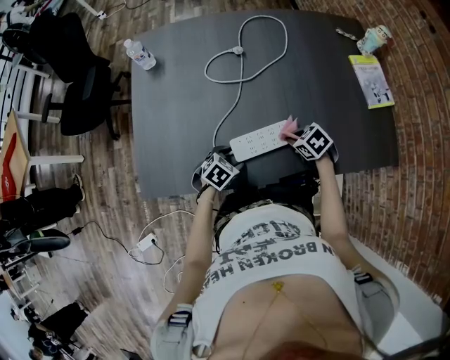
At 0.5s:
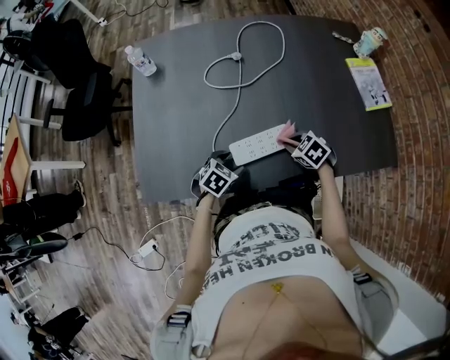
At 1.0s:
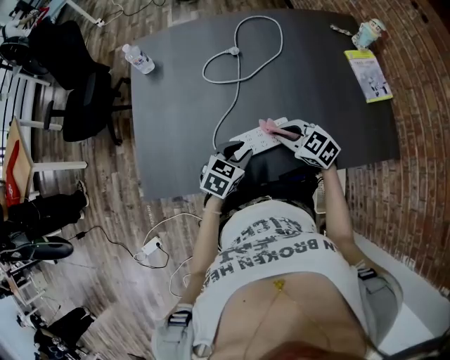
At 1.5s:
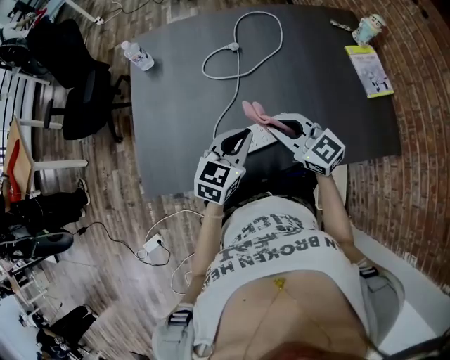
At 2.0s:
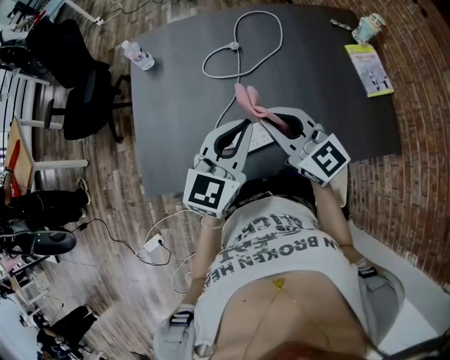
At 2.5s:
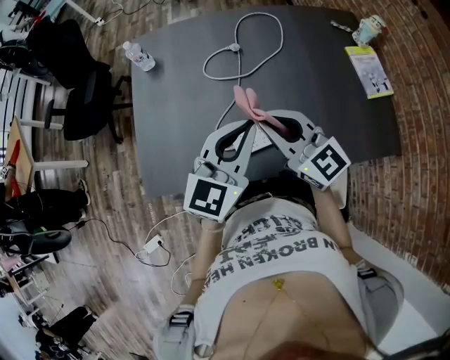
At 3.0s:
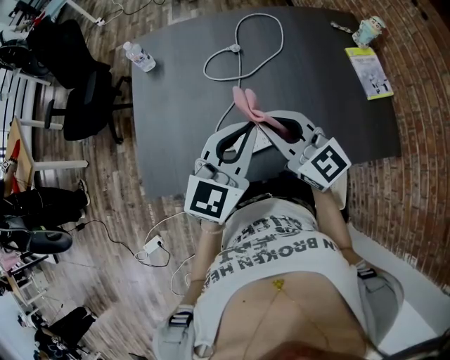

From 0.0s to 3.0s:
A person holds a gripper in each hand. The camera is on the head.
From 0.0s to 1.5s: The two grippers go about 20 cm upward. The right gripper tips its fingers upward by some 50 degrees. Meanwhile the left gripper angles its fingers upward, by approximately 40 degrees, and closes its fingers.
From 1.5s to 3.0s: Both grippers move upward, some 10 cm.

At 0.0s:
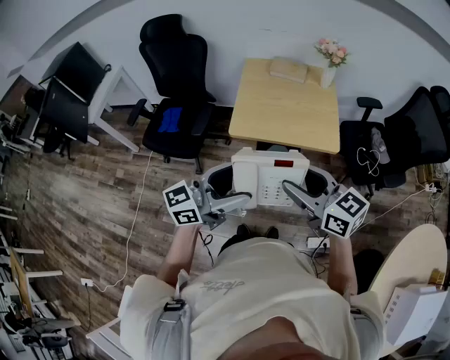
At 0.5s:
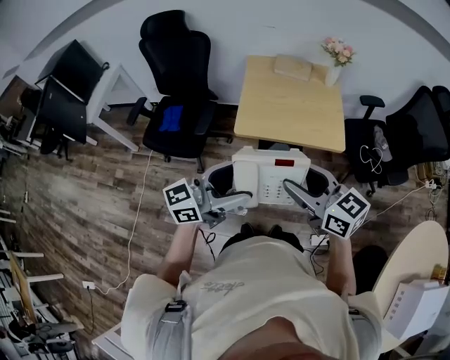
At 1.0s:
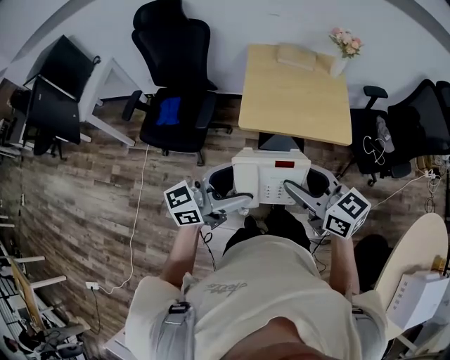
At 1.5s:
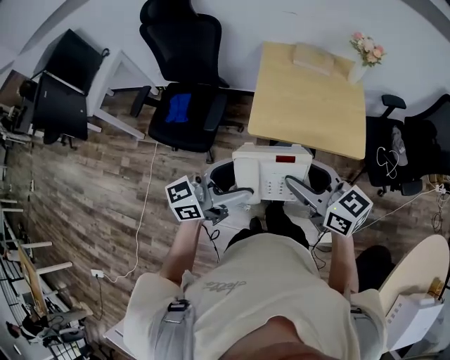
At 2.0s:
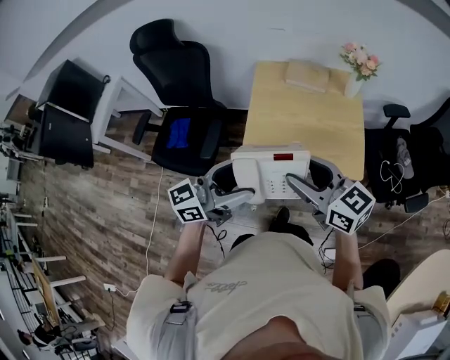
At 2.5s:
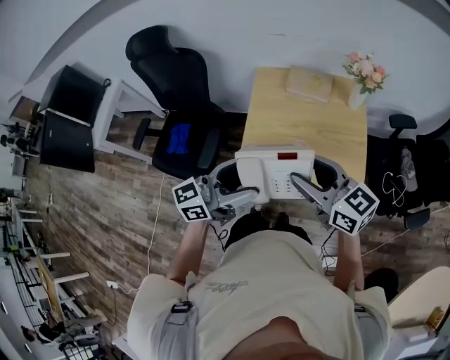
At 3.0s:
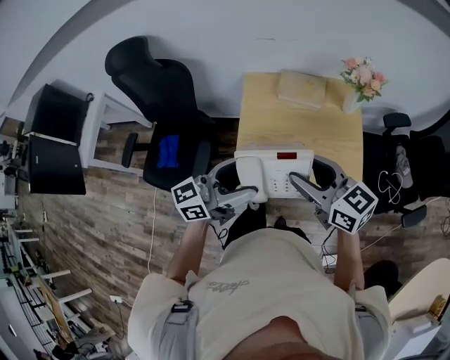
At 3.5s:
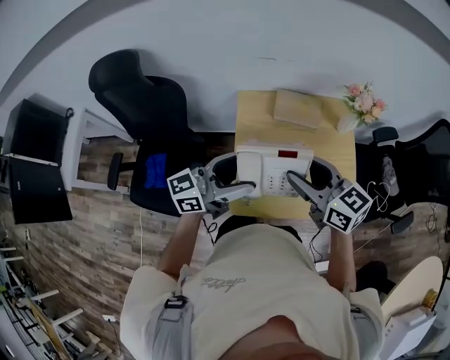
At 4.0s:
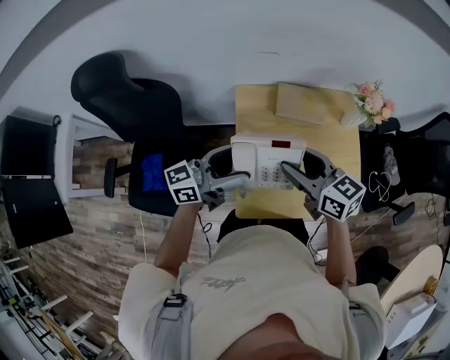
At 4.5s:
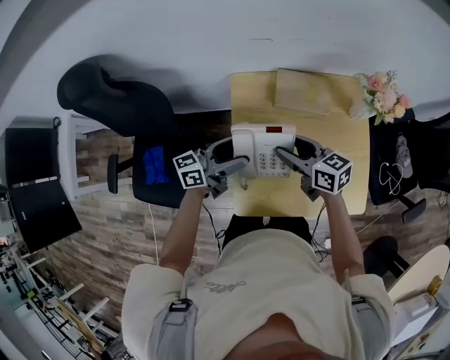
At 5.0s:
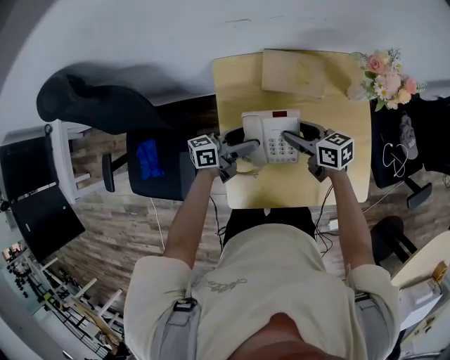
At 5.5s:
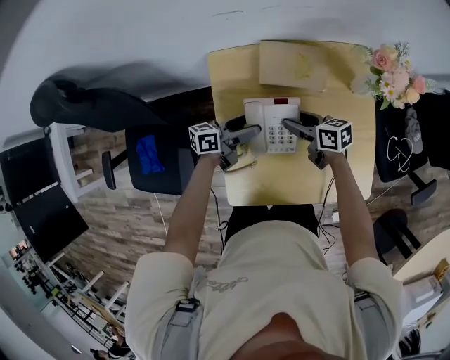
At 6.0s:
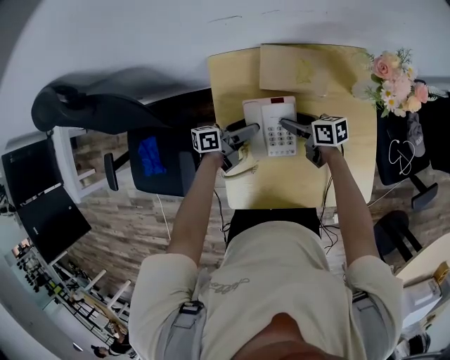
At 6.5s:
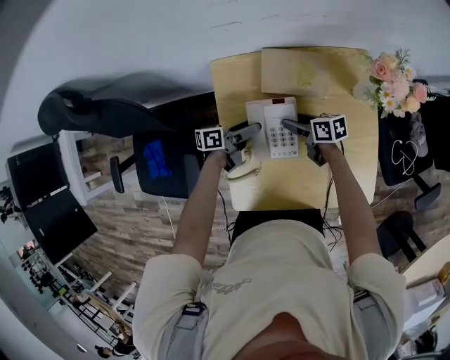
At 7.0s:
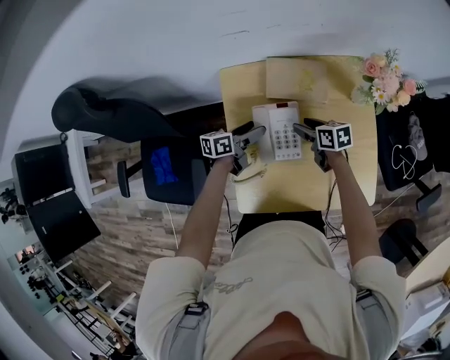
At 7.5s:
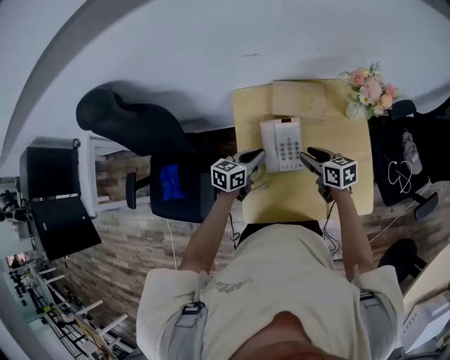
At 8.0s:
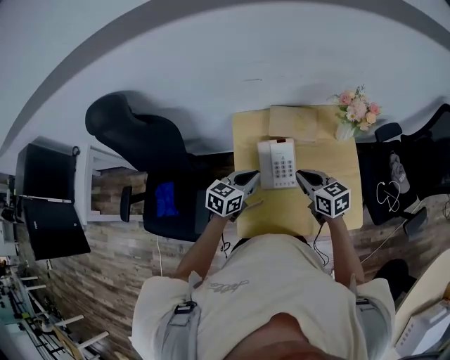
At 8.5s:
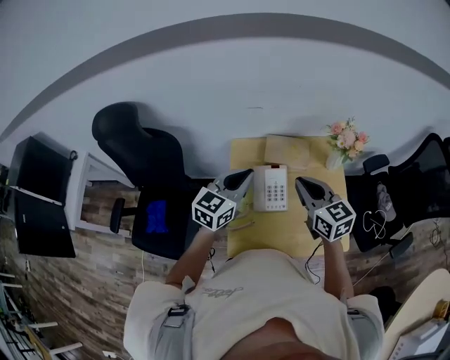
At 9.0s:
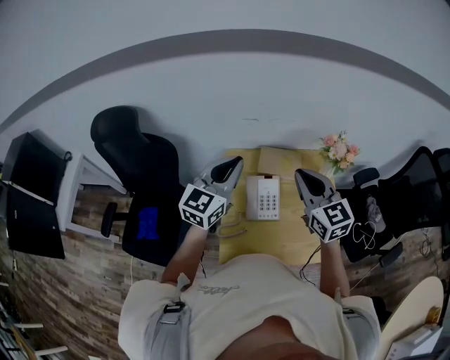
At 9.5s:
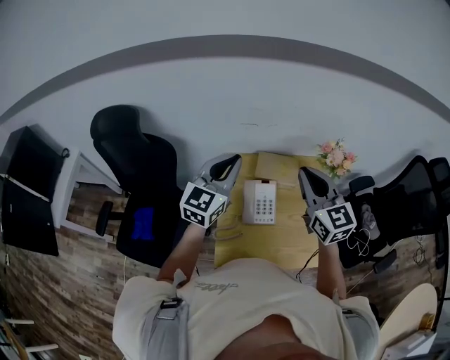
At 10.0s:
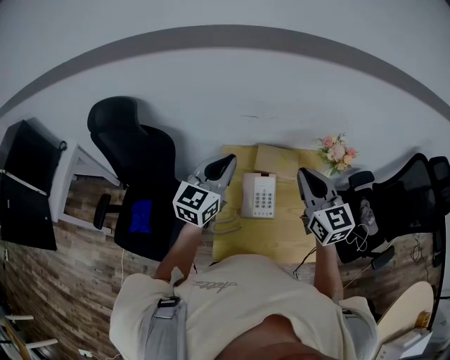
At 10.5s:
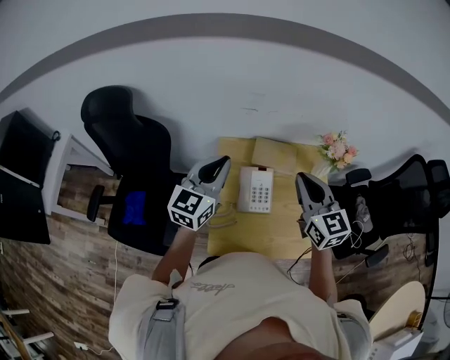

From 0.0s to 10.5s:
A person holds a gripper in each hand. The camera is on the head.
From 0.0s to 2.0s: The grippers both shift forward by roughly 20 cm.
From 2.0s to 4.0s: The two grippers go roughly 35 cm forward.
From 4.0s to 6.5s: The grippers both shift downward by some 35 cm. The left gripper changes its angle by roughly 50 degrees. The right gripper swivels some 40 degrees.
From 6.5s to 8.5s: Both grippers travel together upward, about 35 cm. The left gripper twists approximately 60 degrees clockwise, seen from behind, and closes up; the right gripper swivels approximately 50 degrees, and closes up.
From 8.5s to 10.5s: The right gripper is displaced upward by about 5 cm. The left gripper travels upward and to the left by some 10 cm.

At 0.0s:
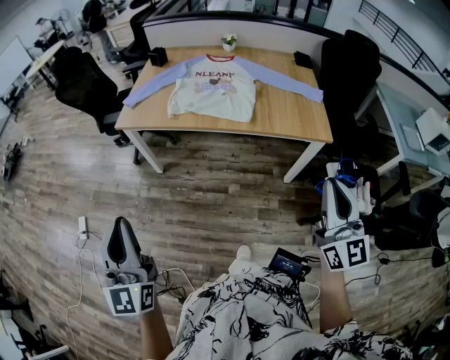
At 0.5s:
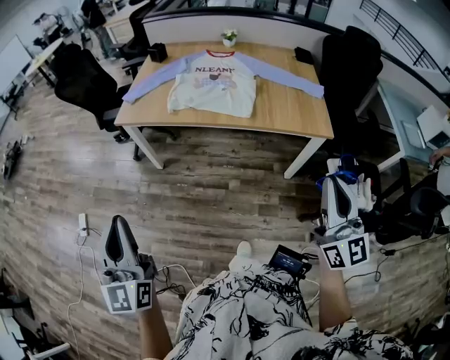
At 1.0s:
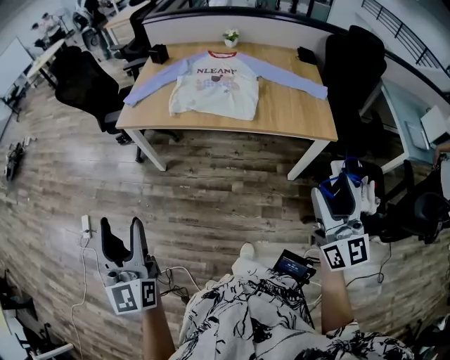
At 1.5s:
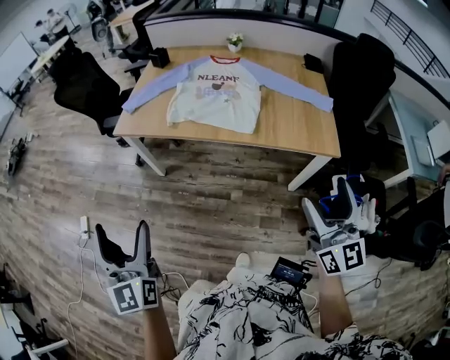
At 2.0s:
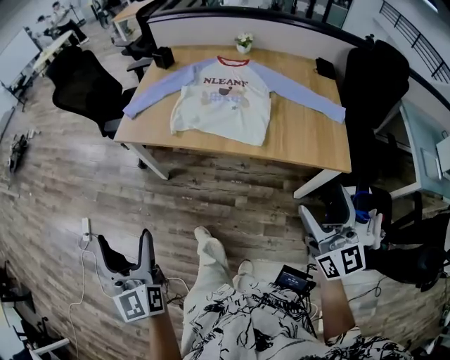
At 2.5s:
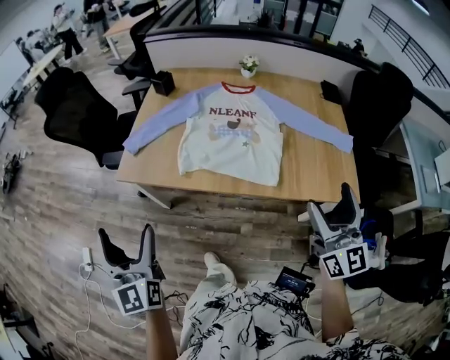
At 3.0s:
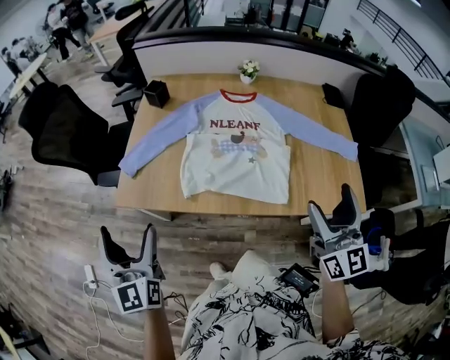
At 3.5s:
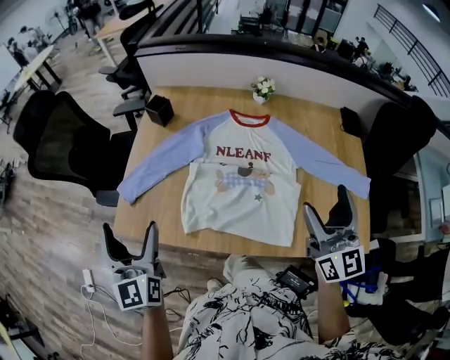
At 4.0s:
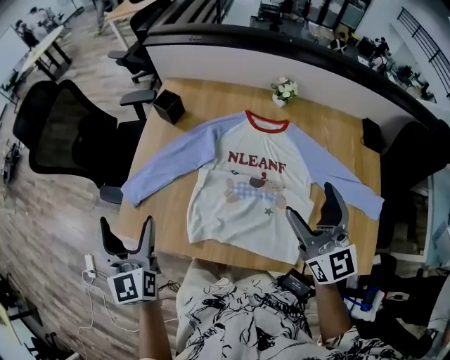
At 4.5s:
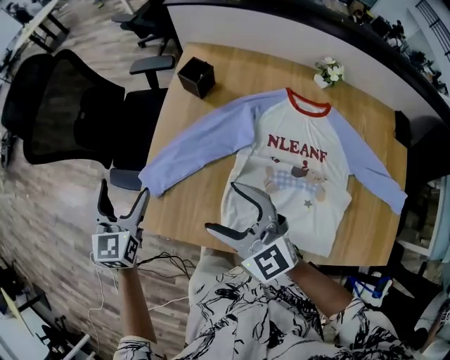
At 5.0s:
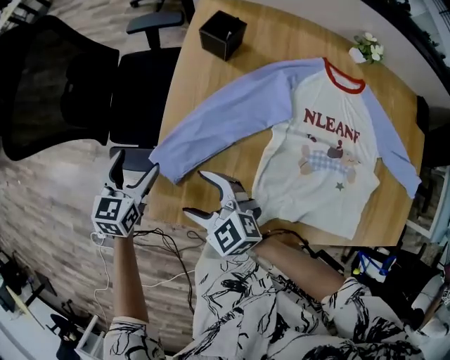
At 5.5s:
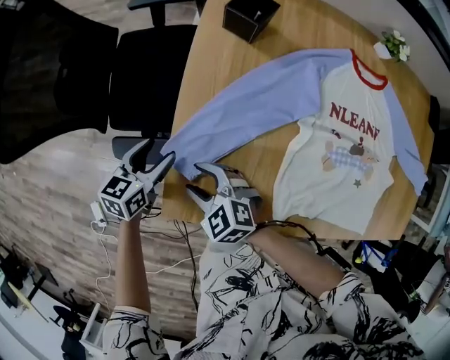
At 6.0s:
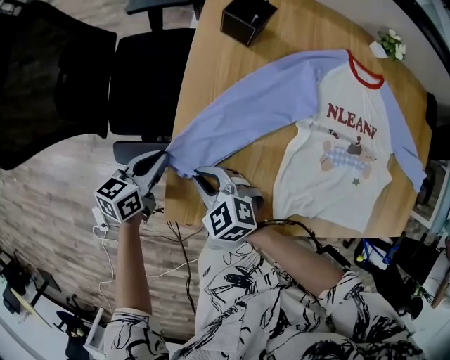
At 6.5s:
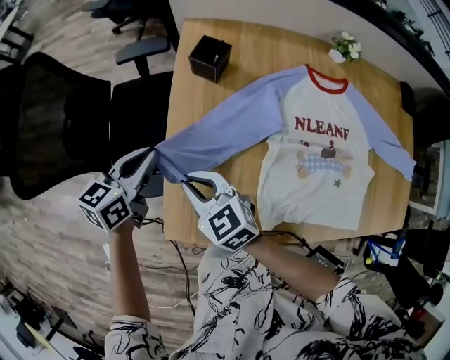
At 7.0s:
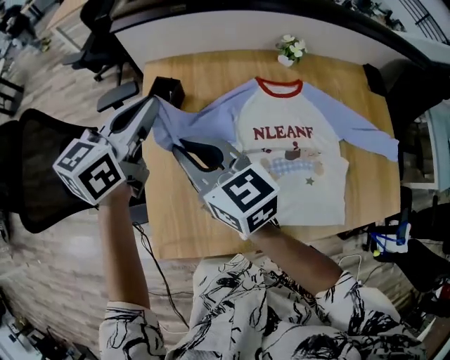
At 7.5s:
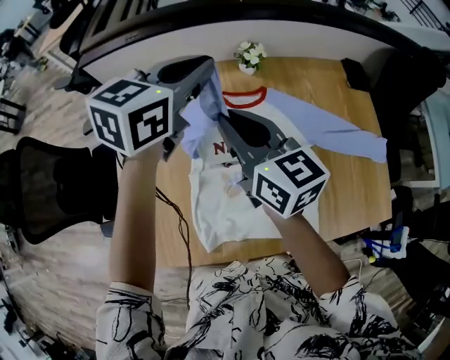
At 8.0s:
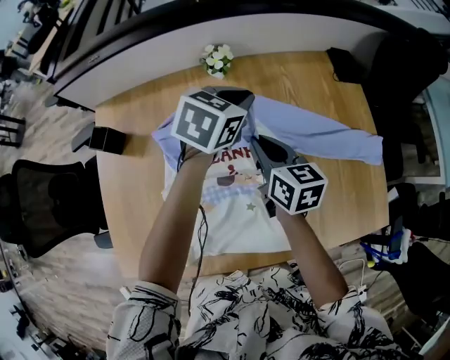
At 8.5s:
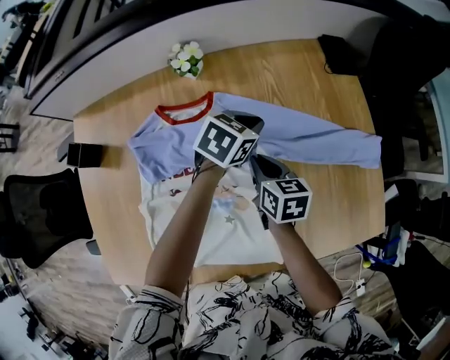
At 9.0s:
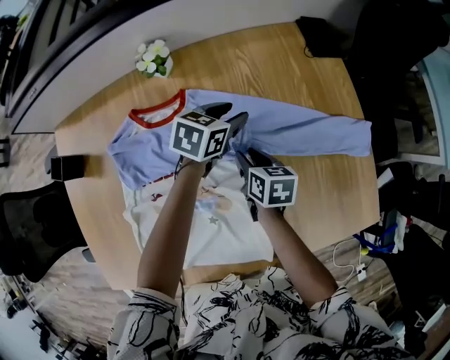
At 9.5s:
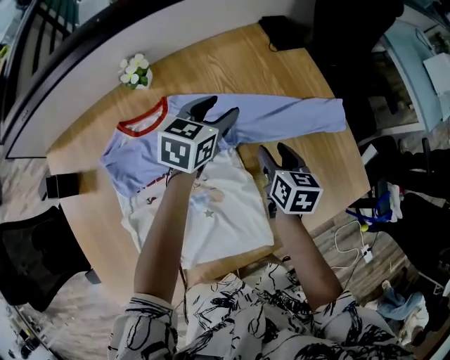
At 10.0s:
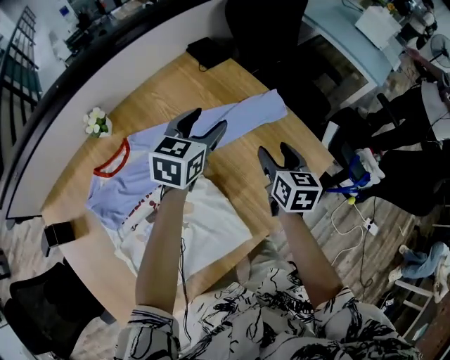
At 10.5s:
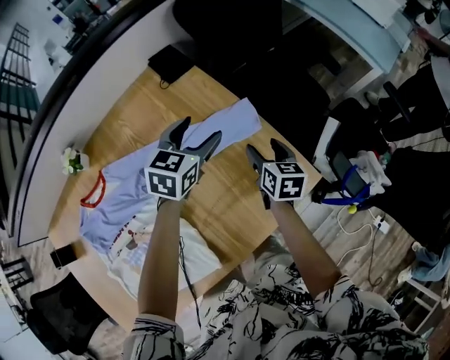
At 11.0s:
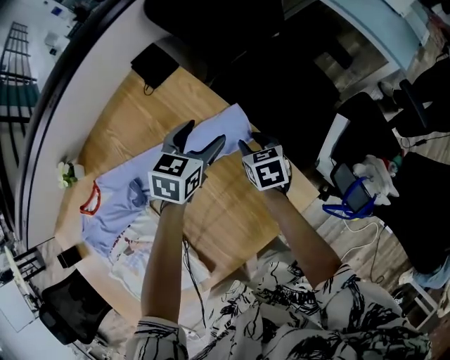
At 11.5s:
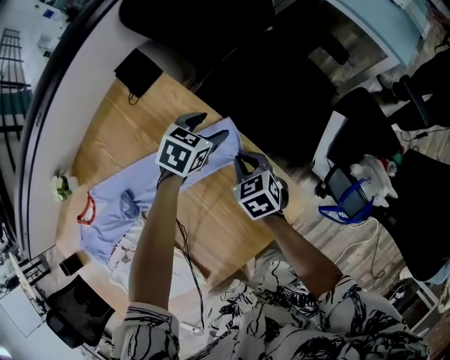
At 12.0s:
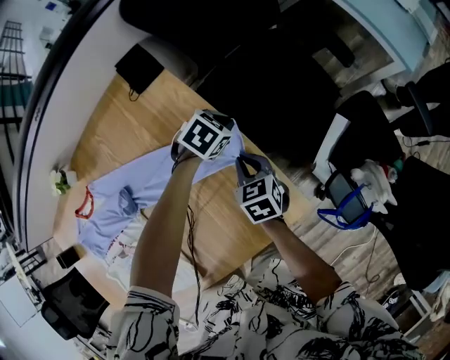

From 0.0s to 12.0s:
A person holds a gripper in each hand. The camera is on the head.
From 0.0s to 2.0s: Both grippers travel together forward, approximately 15 cm. The right gripper opens its fingers. Meanwhile the left gripper opens.
From 2.0s to 4.0s: Both grippers are carried forward, about 60 cm.
From 4.0s to 6.0s: The right gripper goes about 60 cm to the left and downward, angles its fingers downward, by some 40 degrees, and closes up. Meanwhile the left gripper heads downward, forward and to the left, covering approximately 40 cm, changes its angle by about 60 degrees, and closes up.
From 6.0s to 8.0s: The two grippers travel together, some 70 cm. The left gripper rotates around the line of its fingers by about 40 degrees, clockwise from behind; the right gripper turns by some 70 degrees.
From 8.0s to 10.0s: The right gripper goes downward and returns, approximately 20 cm each way, turns by some 50 degrees, and opens up; the left gripper moves roughly 20 cm downward and comes back, rotates about 20 degrees, and opens up.
From 10.0s to 12.0s: The right gripper shifts approximately 25 cm forward, downward and to the right, rotates approximately 30 degrees, and closes, while the left gripper heads downward, to the right and forward, covering about 40 cm, tilts its fingers some 40 degrees downward, and closes its fingers.

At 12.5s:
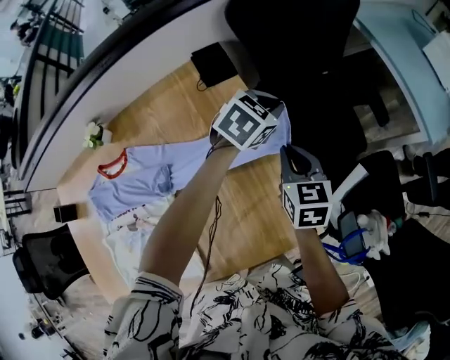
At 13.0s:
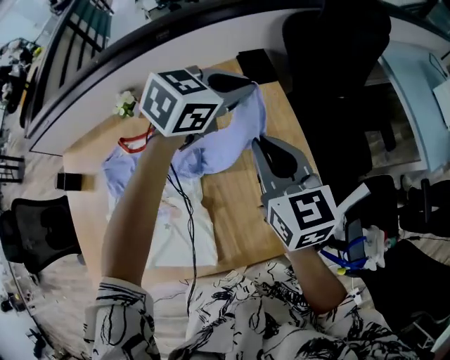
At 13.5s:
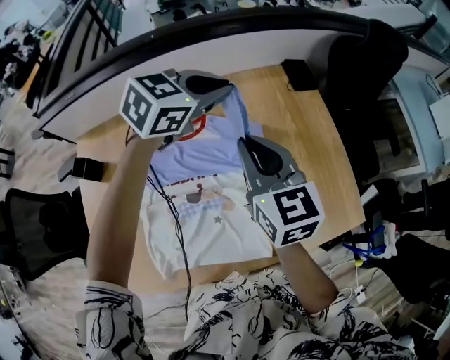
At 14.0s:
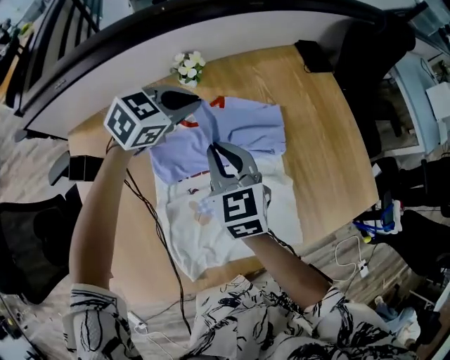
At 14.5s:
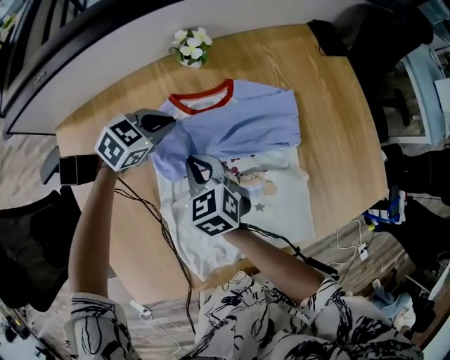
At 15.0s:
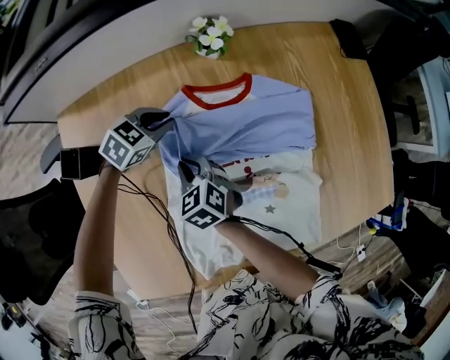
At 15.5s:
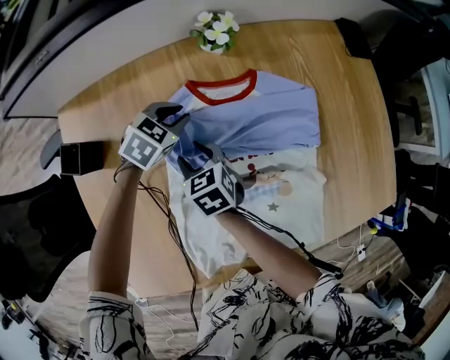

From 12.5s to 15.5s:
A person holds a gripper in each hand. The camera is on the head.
From 12.5s to 14.0s: The two grippers travel together, to the left and backward, roughly 70 cm. The right gripper changes its angle by approximately 20 degrees.
From 14.0s to 15.5s: The two grippers go approximately 25 cm downward and to the left. The right gripper swivels roughly 30 degrees, and opens; the left gripper turns by approximately 20 degrees.
